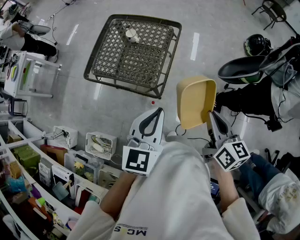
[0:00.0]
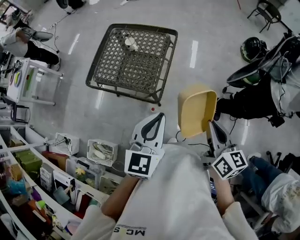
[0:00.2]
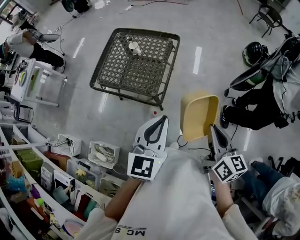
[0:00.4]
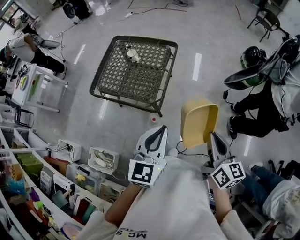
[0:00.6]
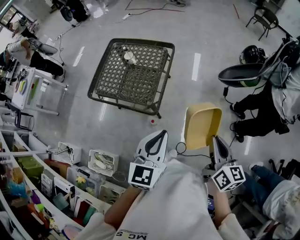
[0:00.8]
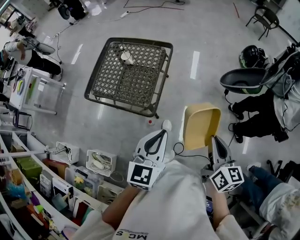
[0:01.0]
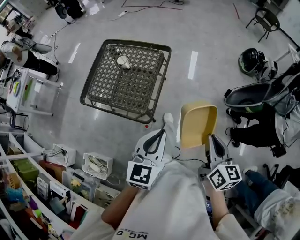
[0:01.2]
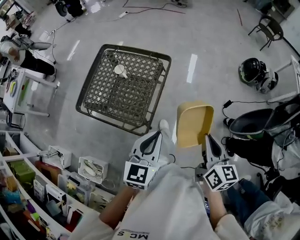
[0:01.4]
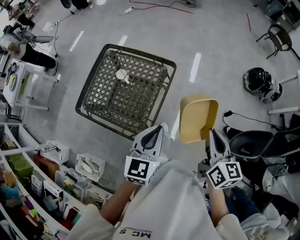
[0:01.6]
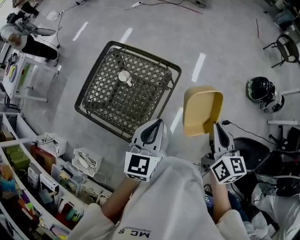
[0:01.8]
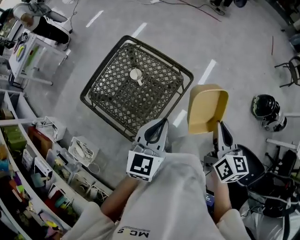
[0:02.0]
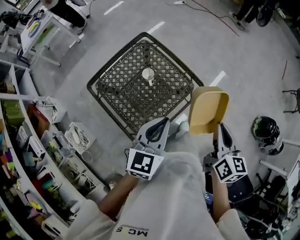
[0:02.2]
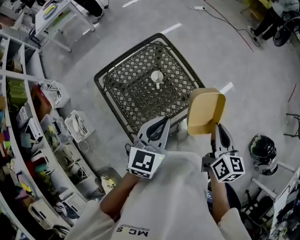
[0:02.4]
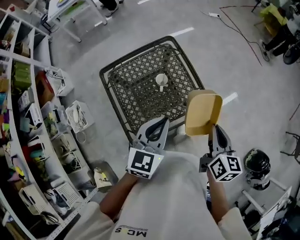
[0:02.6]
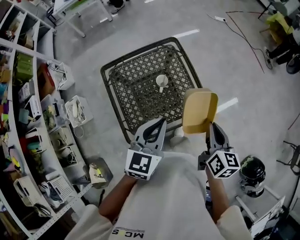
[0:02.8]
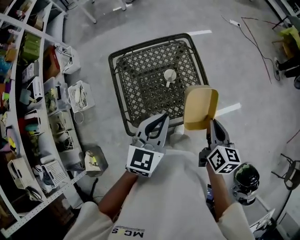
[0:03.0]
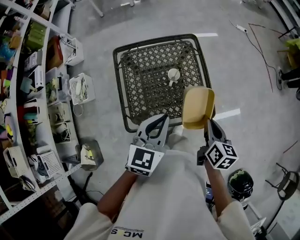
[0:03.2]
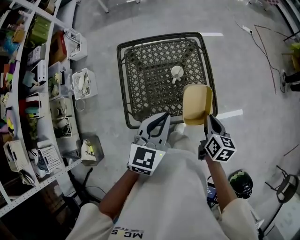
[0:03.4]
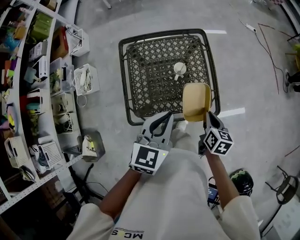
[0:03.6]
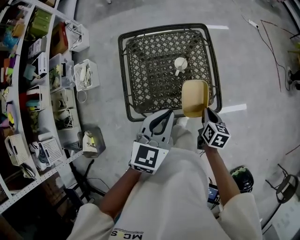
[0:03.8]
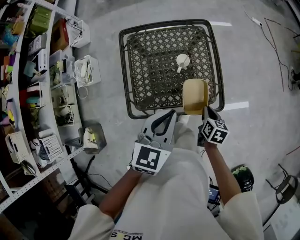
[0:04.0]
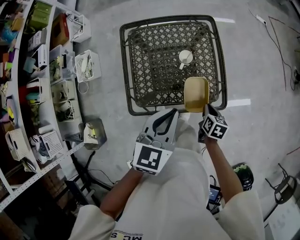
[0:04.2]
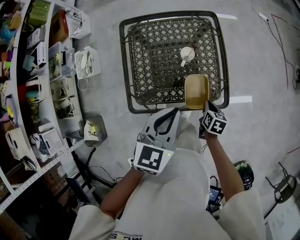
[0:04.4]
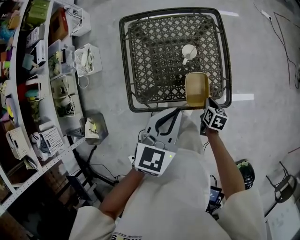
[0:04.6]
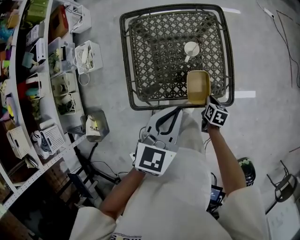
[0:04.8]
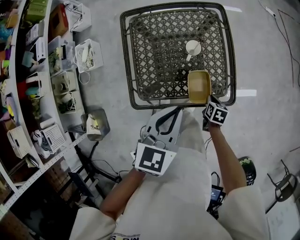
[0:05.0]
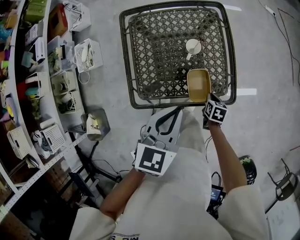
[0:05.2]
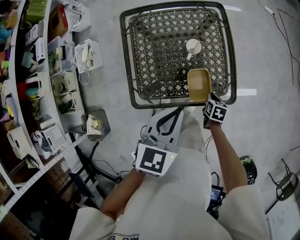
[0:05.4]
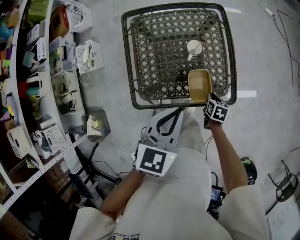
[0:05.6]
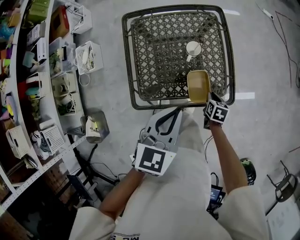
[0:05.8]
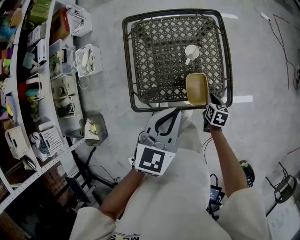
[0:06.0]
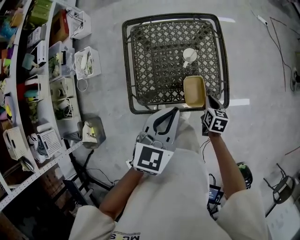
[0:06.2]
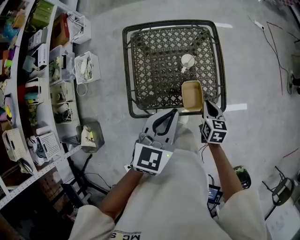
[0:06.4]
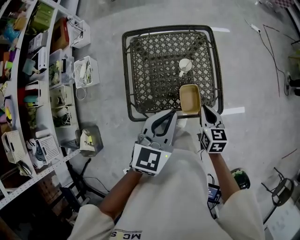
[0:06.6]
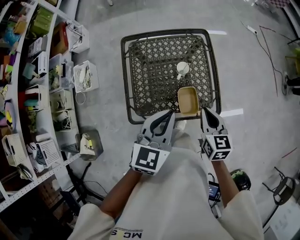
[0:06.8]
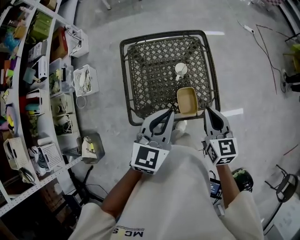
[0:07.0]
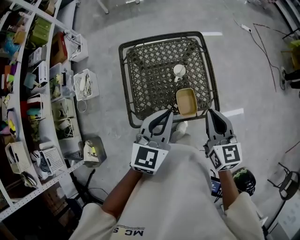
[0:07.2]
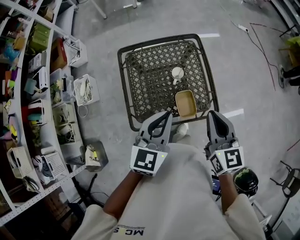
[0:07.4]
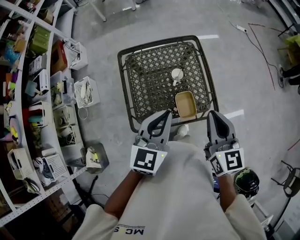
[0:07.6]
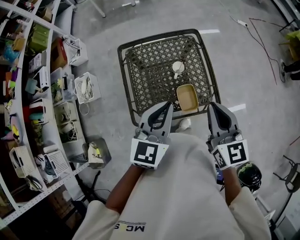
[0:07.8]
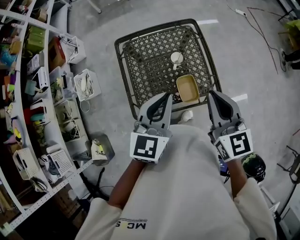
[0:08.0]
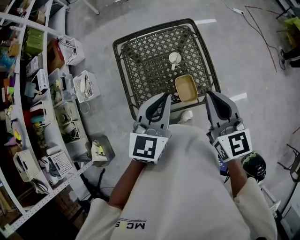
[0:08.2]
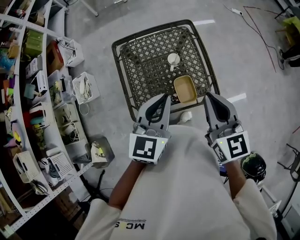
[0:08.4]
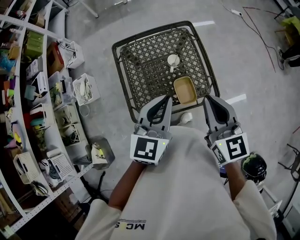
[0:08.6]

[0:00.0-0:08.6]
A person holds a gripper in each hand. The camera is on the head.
0:00.0 to 0:01.4: The two grippers go roughly 15 cm forward and to the right.
0:01.4 to 0:02.8: The left gripper ends up roughly 30 cm from where it was, and changes its angle by roughly 50 degrees. Meanwhile the right gripper shifts by roughly 40 cm, and changes its angle by about 50 degrees.
0:02.8 to 0:04.4: The right gripper is displaced downward by about 30 cm, and swivels some 30 degrees, while the left gripper shifts about 5 cm downward.
0:04.4 to 0:05.8: The right gripper shifts some 5 cm downward.
0:05.8 to 0:07.2: The right gripper heads upward, covering about 35 cm, and points its fingers some 40 degrees further upward. The left gripper goes roughly 5 cm upward.
0:07.2 to 0:08.6: The right gripper heads upward, covering roughly 5 cm.

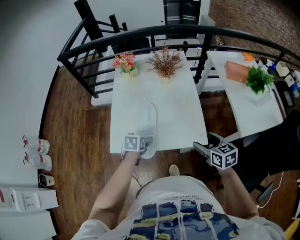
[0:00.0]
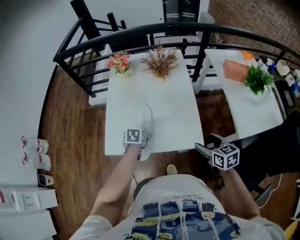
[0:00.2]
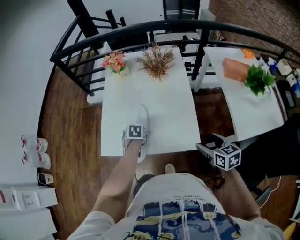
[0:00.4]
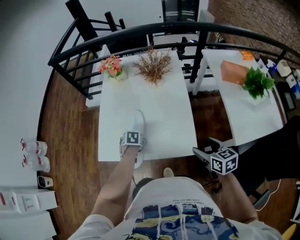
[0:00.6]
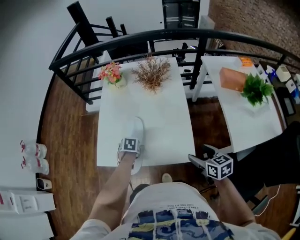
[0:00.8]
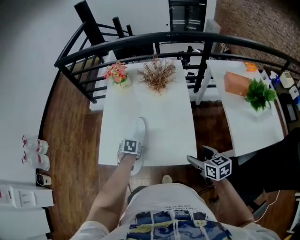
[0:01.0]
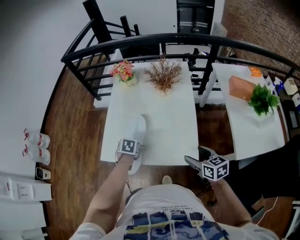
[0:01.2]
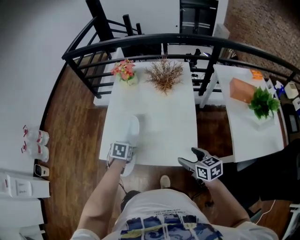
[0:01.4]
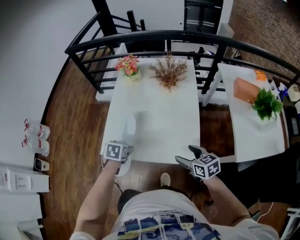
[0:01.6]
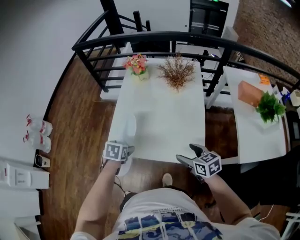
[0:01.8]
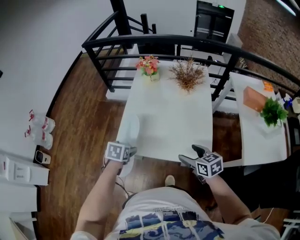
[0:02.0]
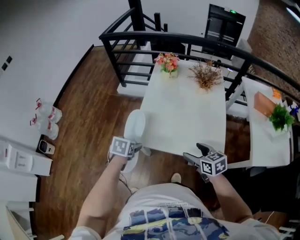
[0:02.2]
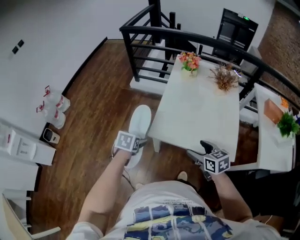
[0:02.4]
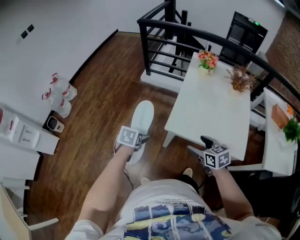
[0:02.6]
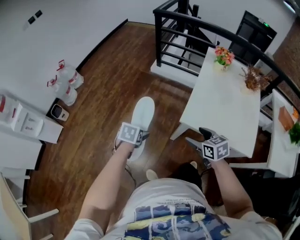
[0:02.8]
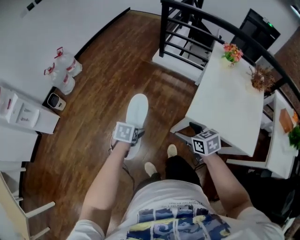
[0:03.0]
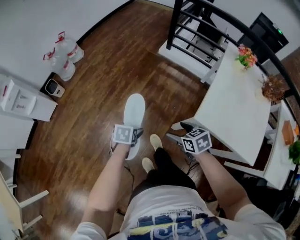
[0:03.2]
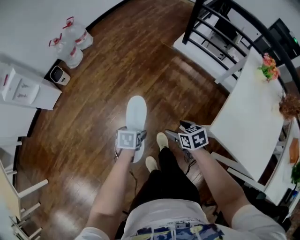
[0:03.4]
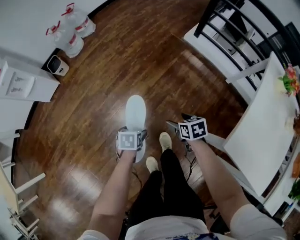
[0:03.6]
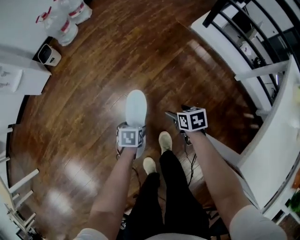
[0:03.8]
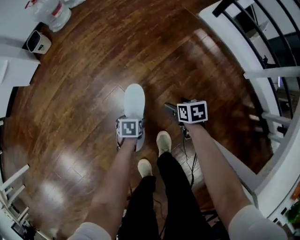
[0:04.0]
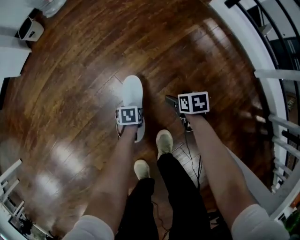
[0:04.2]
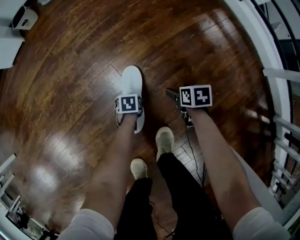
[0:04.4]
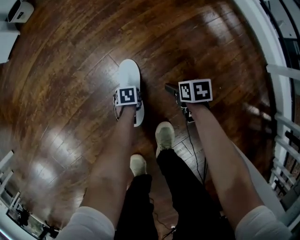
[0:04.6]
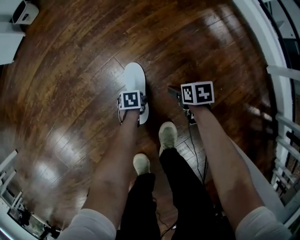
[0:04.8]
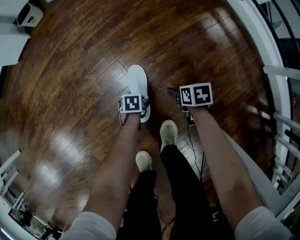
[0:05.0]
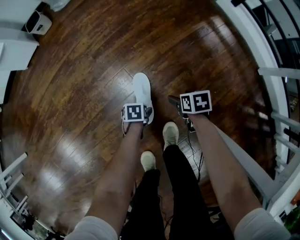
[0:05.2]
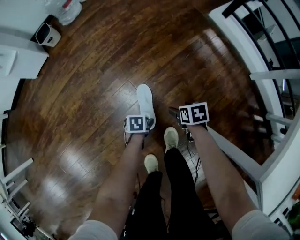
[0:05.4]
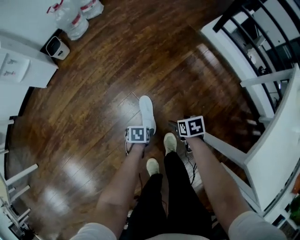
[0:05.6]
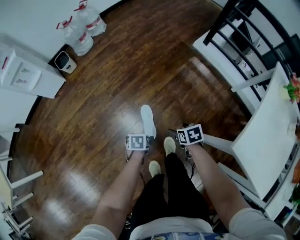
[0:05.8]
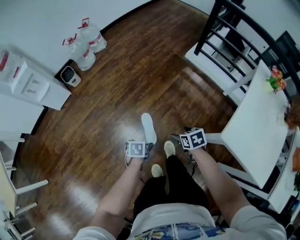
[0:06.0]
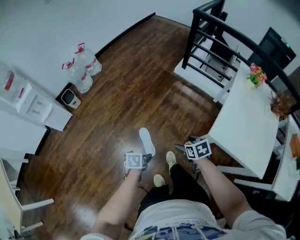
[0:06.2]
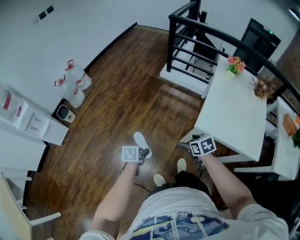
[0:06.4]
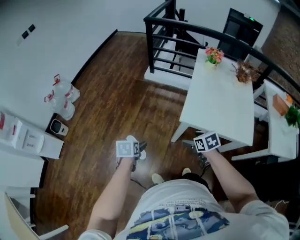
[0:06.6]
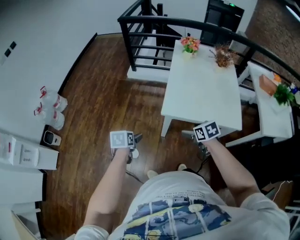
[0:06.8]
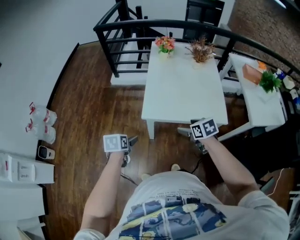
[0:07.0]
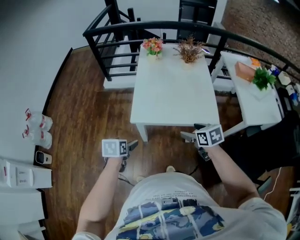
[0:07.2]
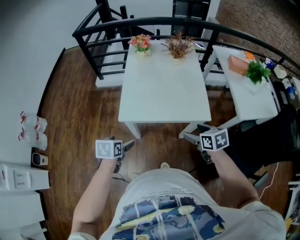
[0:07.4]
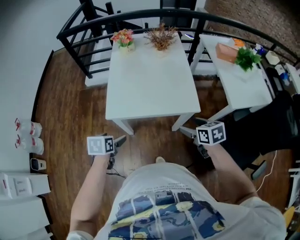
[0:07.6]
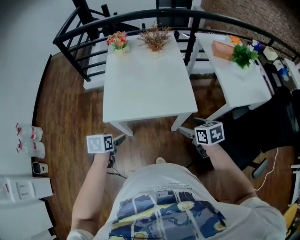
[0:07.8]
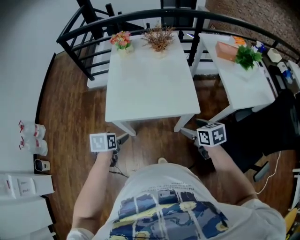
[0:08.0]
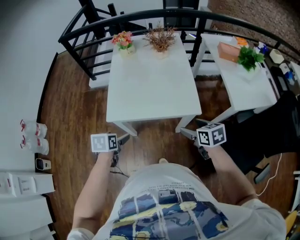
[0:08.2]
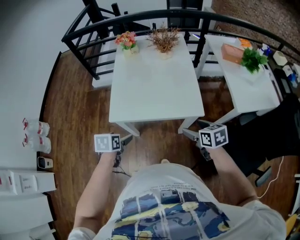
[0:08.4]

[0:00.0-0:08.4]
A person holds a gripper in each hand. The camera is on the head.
0:00.0 to 0:01.4: The left gripper reaches some 10 cm forward, then returns; the right gripper is displaced forward by some 5 cm, and reaches about 10 cm to the right, then returns.
0:01.4 to 0:02.8: The two grippers travel together, to the left, approximately 50 cm. The right gripper turns by roughly 20 degrees.
0:02.8 to 0:04.2: Both grippers travel together downward, about 80 cm. The right gripper turns by some 30 degrees, while the left gripper twists about 40 degrees counterclockwise, seen from behind.
0:04.2 to 0:05.6: The grippers both shift upward by some 25 cm.
0:05.6 to 0:07.0: The left gripper travels upward by about 50 cm, and rotates around the line of its fingers by roughly 40 degrees, clockwise from behind. Meanwhile the right gripper moves about 80 cm, and rotates approximately 40 degrees.
0:07.0 to 0:08.4: Both grippers move to the right, about 25 cm.

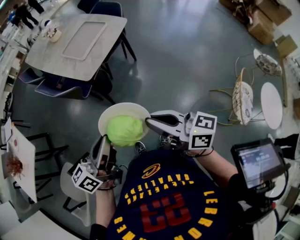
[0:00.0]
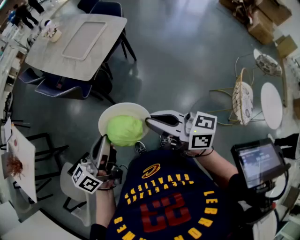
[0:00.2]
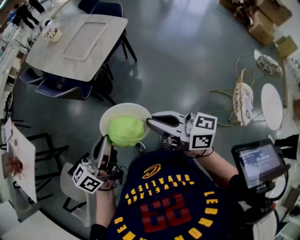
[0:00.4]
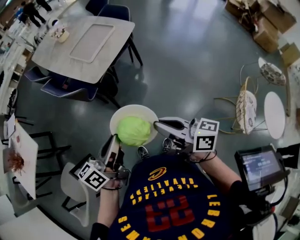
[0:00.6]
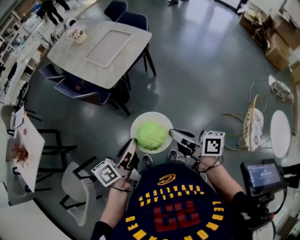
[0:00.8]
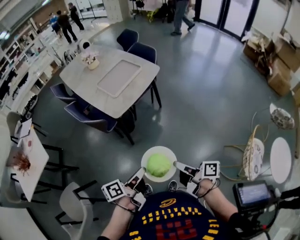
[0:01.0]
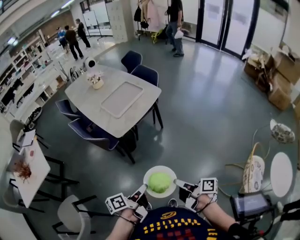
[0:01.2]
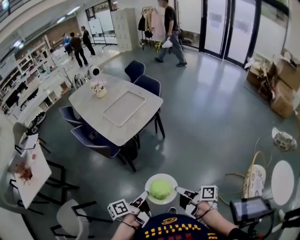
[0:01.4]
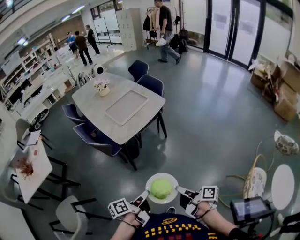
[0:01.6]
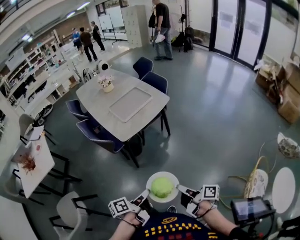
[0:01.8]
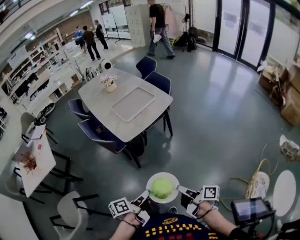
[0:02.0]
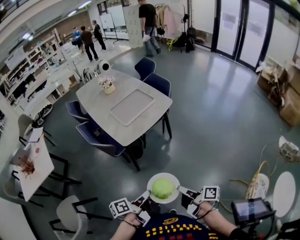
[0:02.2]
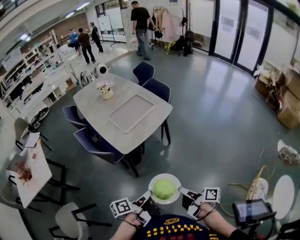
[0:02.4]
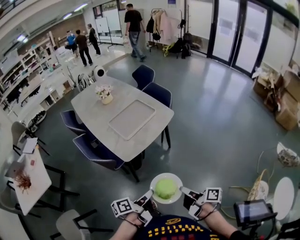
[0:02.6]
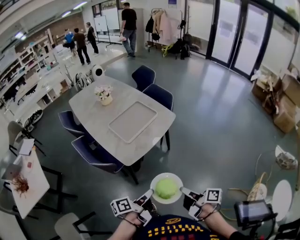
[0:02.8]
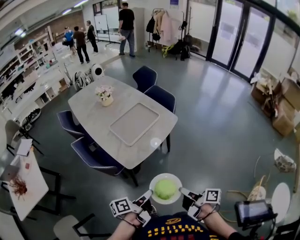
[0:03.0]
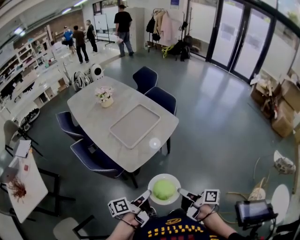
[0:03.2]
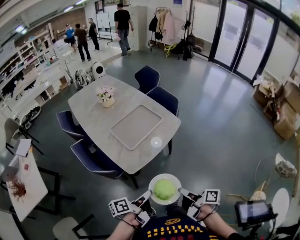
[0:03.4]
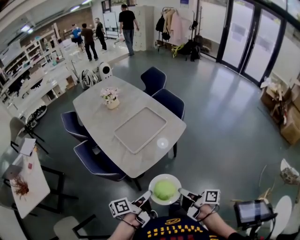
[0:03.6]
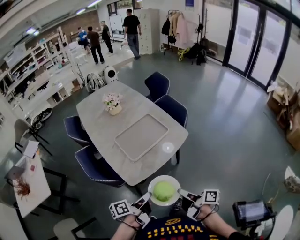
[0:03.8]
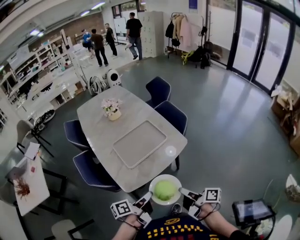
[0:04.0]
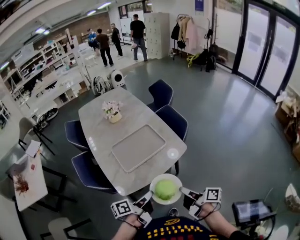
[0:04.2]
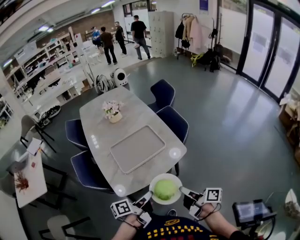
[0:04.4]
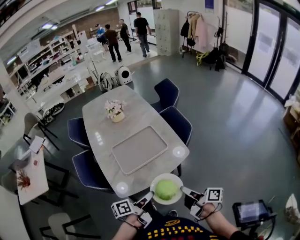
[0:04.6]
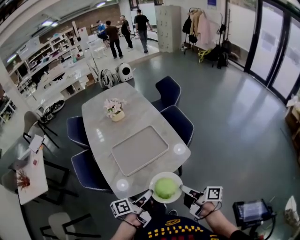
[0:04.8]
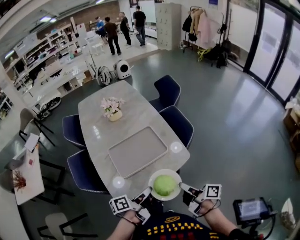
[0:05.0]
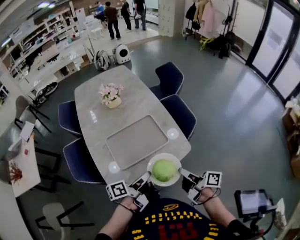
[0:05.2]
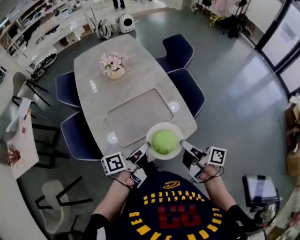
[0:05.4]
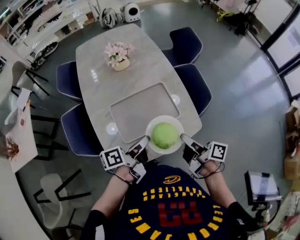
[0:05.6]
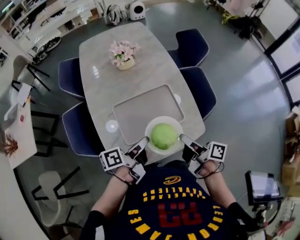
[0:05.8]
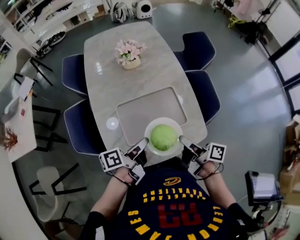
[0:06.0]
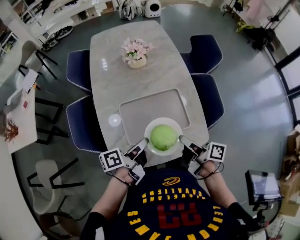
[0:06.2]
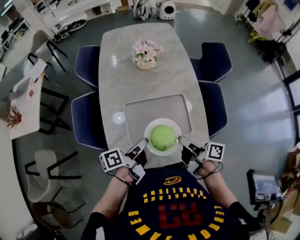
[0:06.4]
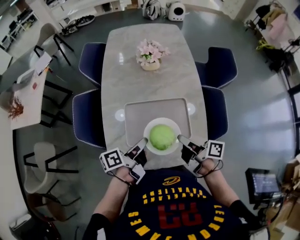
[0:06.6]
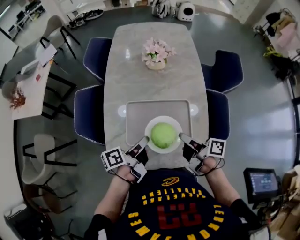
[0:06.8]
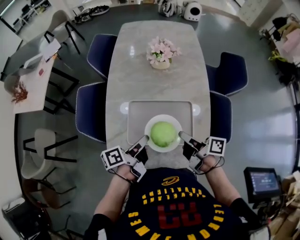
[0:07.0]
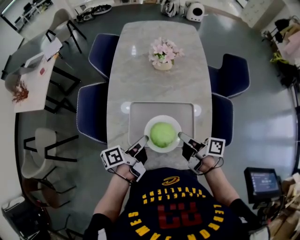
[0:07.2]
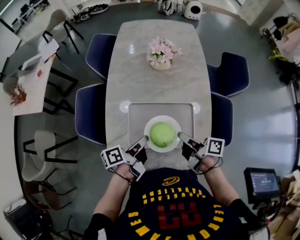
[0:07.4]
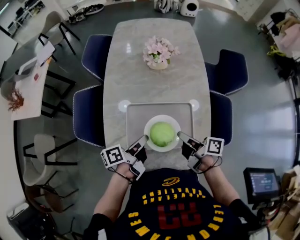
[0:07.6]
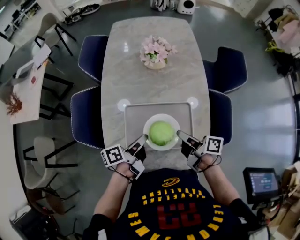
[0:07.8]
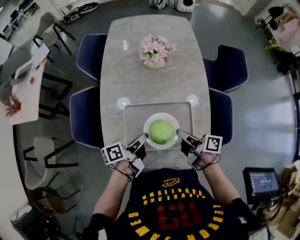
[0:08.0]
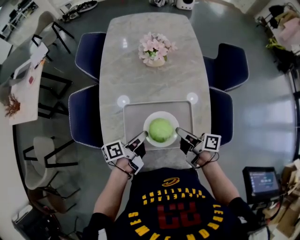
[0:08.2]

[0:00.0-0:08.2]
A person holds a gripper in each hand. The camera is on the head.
0:00.0 to 0:01.6: The two grippers go some 20 cm downward and to the right. The right gripper rotates approximately 40 degrees, while the left gripper rotates approximately 40 degrees.
0:01.6 to 0:03.2: The grippers both shift forward and to the left by some 25 cm.
0:03.2 to 0:05.0: The left gripper is displaced forward and to the right by roughly 30 cm; the right gripper travels forward by approximately 35 cm, and changes its angle by roughly 20 degrees.
0:05.0 to 0:06.6: The left gripper ends up about 20 cm from where it was, and turns by approximately 30 degrees. Meanwhile the right gripper changes place by some 25 cm, and changes its angle by roughly 30 degrees.
0:06.6 to 0:08.2: Both grippers move forward and downward, some 10 cm.
